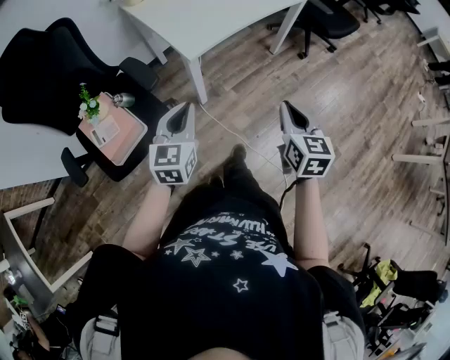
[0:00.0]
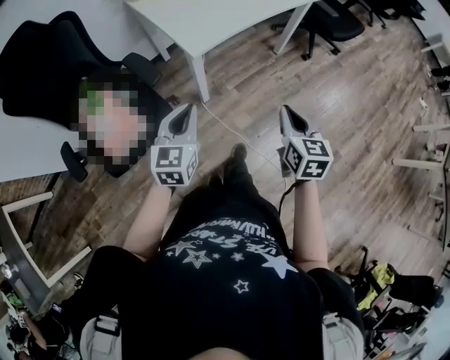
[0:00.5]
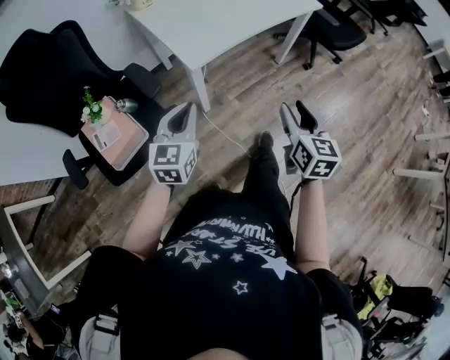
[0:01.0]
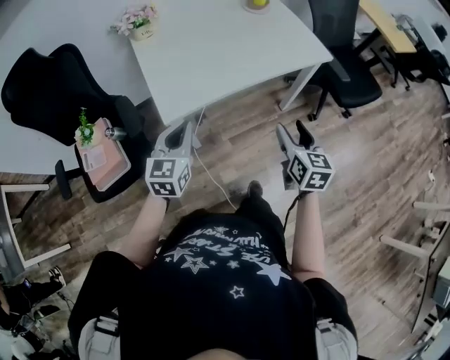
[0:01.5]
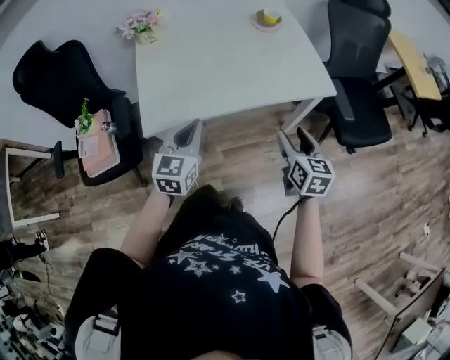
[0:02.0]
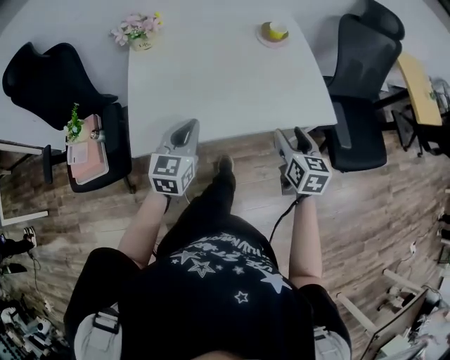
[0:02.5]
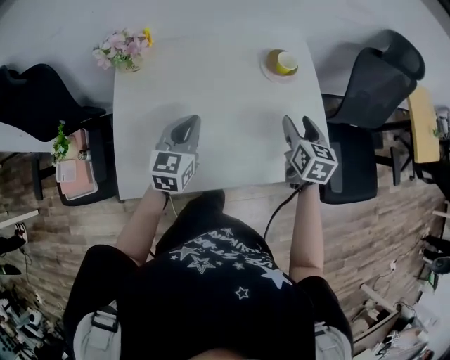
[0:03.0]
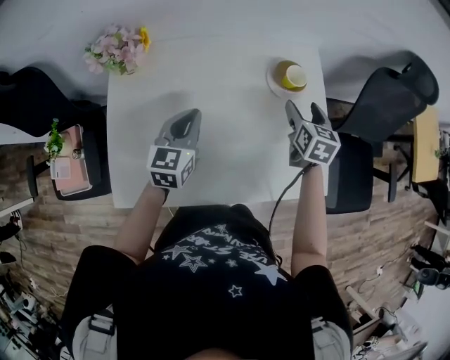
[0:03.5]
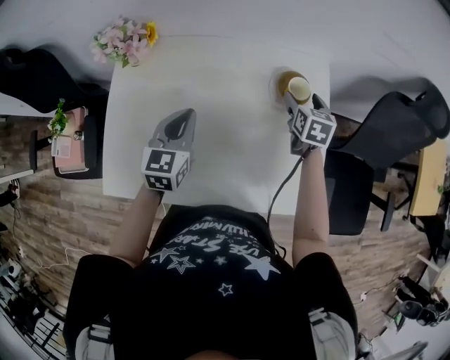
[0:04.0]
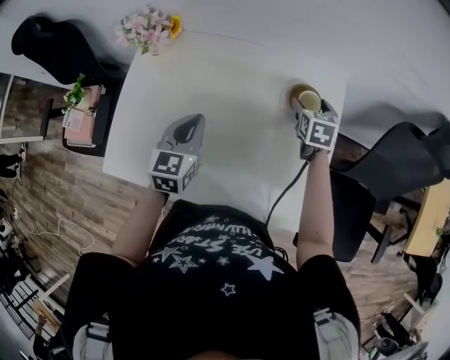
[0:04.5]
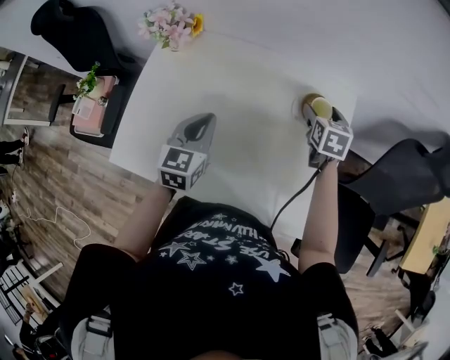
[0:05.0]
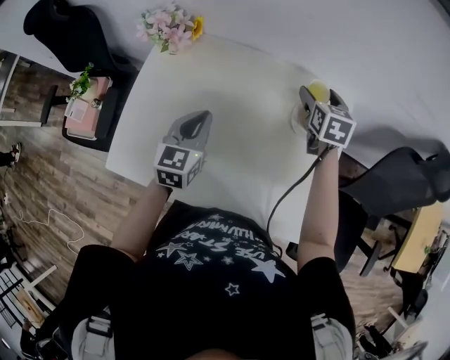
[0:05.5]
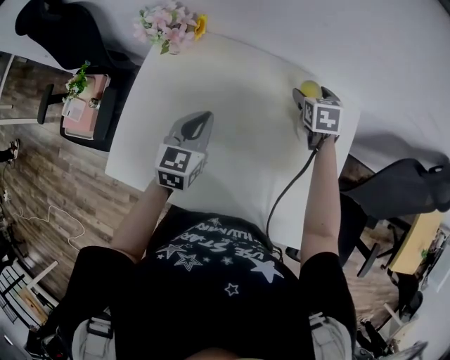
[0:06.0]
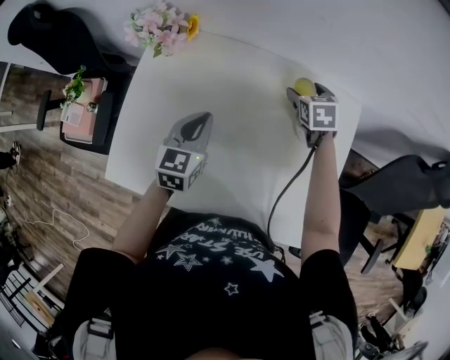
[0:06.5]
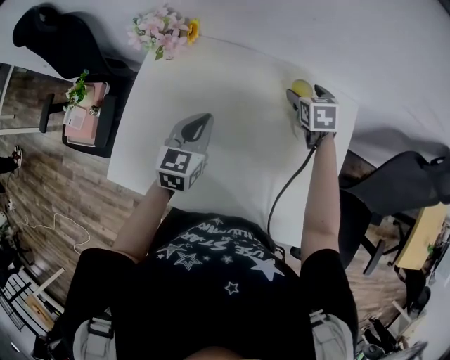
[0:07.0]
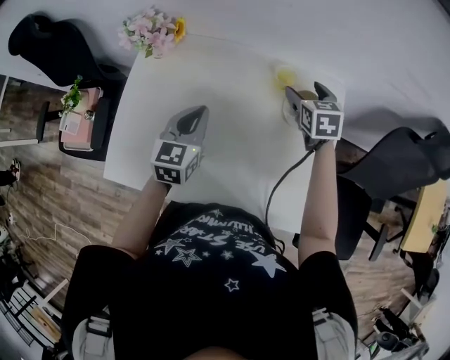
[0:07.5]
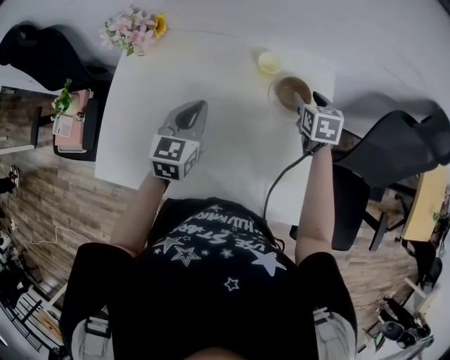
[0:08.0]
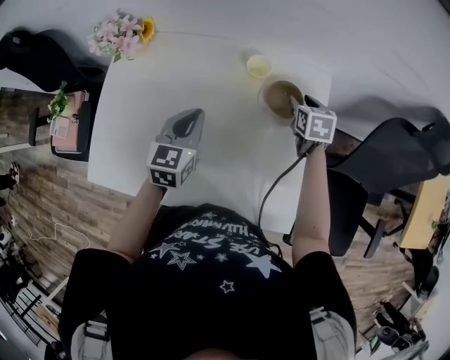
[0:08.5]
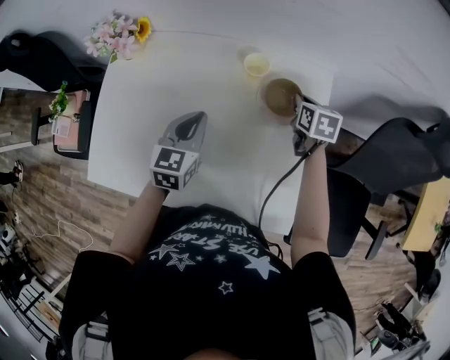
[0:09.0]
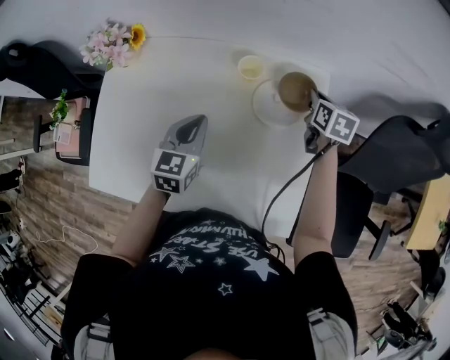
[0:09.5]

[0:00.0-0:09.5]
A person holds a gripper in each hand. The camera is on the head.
0:00.0 to 0:02.0: Both grippers travel together forward and to the right, some 40 cm. The left gripper swivels about 20 degrees, while the right gripper swivels roughly 20 degrees, and opens up.
0:02.0 to 0:04.0: The left gripper shifts approximately 35 cm forward; the right gripper goes some 60 cm forward, and rotates about 20 degrees.
0:04.0 to 0:05.5: The right gripper shifts some 10 cm forward, to the left and upward.
0:05.5 to 0:07.5: The right gripper moves approximately 10 cm downward and comes back.
0:07.5 to 0:09.5: The right gripper shifts some 15 cm to the right, swivels approximately 30 degrees, and closes, while the left gripper is displaced to the right by approximately 10 cm.

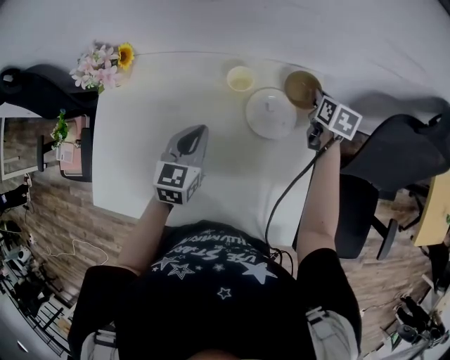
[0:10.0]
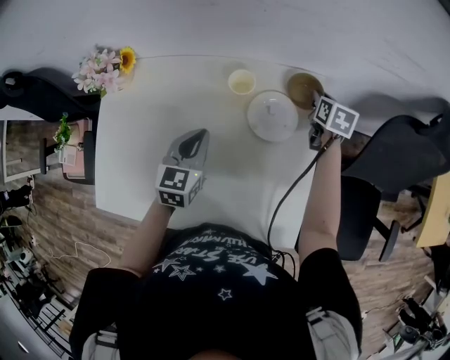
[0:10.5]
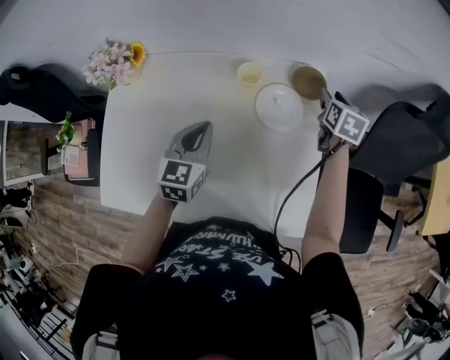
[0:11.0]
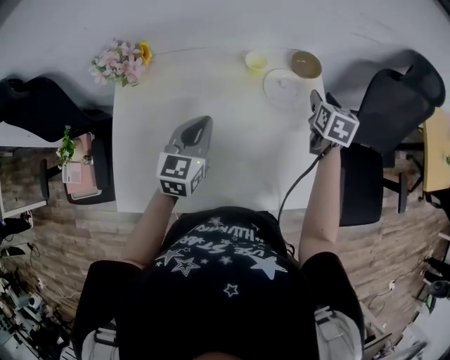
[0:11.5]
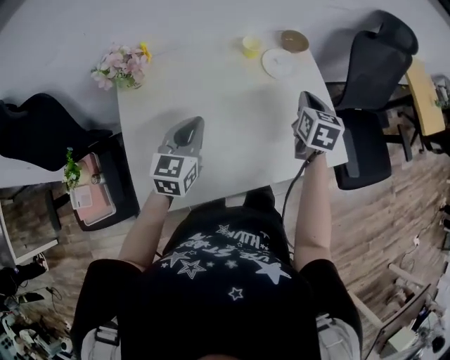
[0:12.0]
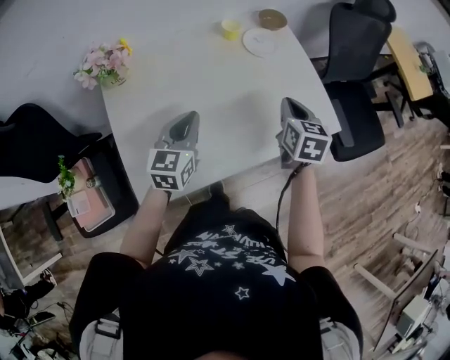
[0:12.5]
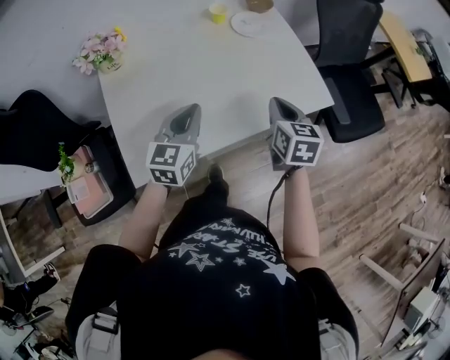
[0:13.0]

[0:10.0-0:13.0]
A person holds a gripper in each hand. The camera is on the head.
0:10.0 to 0:11.5: The right gripper travels backward and upward by roughly 20 cm, and opens its fingers; the left gripper travels to the left, backward and upward by about 10 cm.
0:11.5 to 0:13.0: The left gripper goes about 20 cm backward; the right gripper shifts approximately 35 cm backward, and closes up.

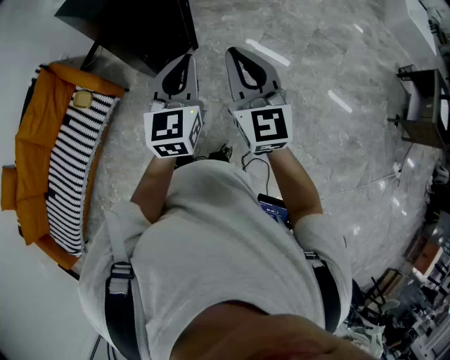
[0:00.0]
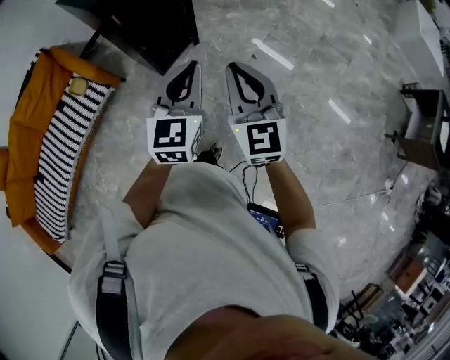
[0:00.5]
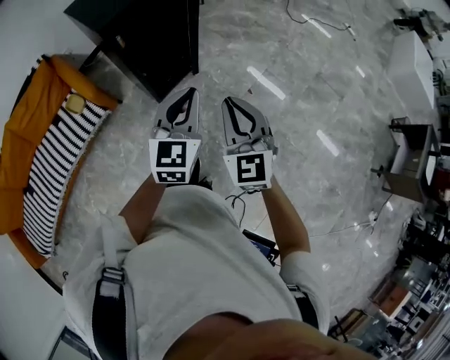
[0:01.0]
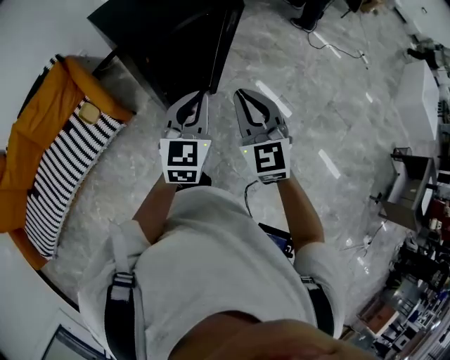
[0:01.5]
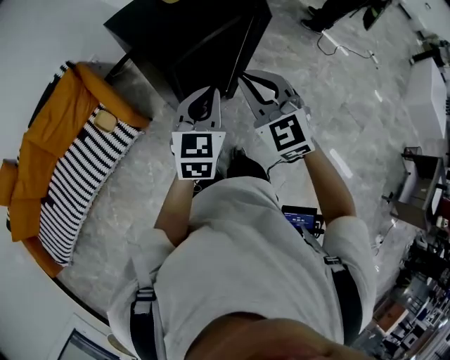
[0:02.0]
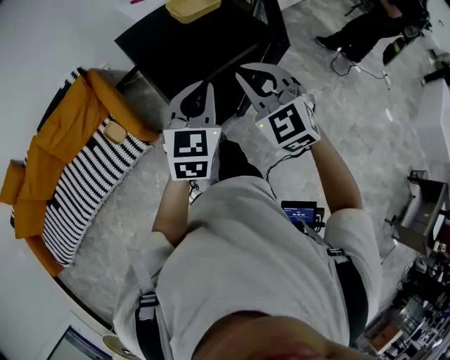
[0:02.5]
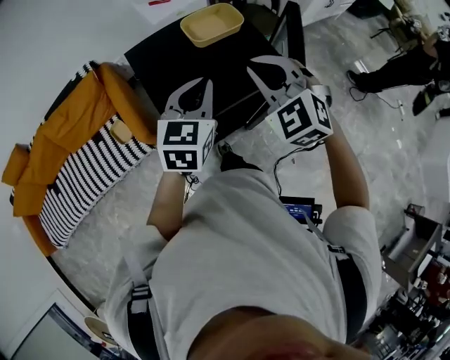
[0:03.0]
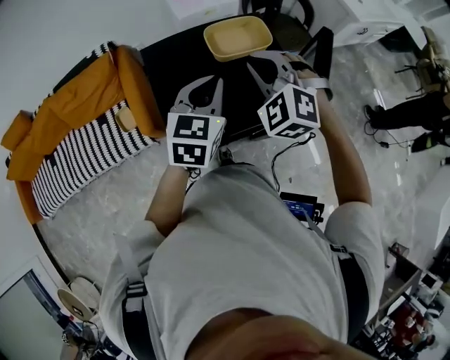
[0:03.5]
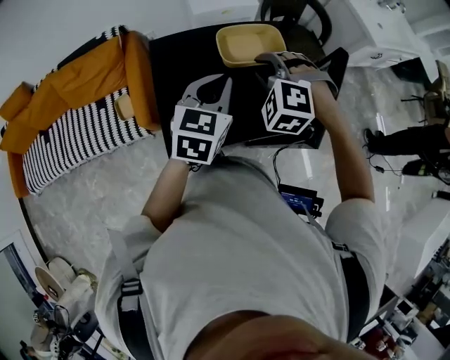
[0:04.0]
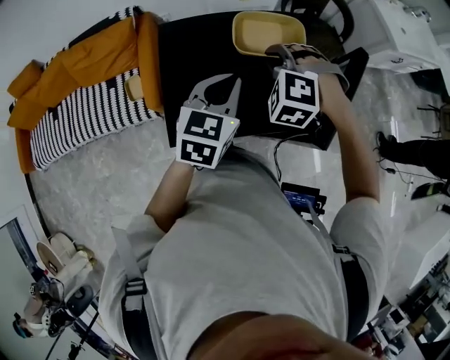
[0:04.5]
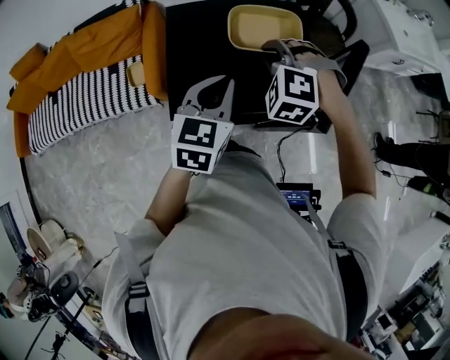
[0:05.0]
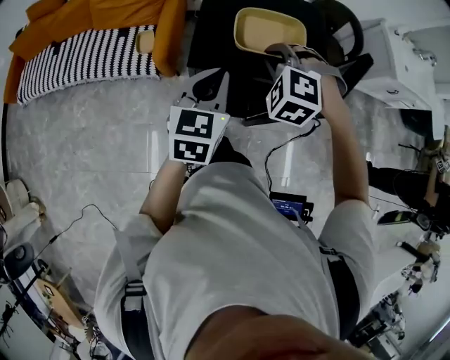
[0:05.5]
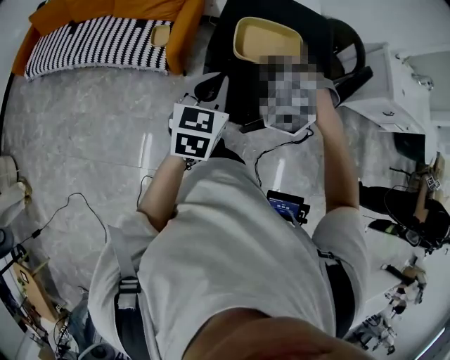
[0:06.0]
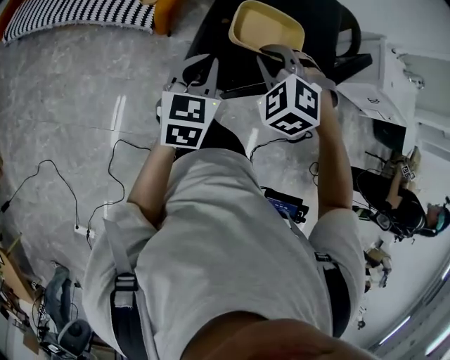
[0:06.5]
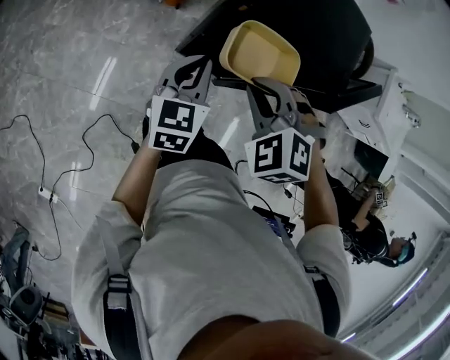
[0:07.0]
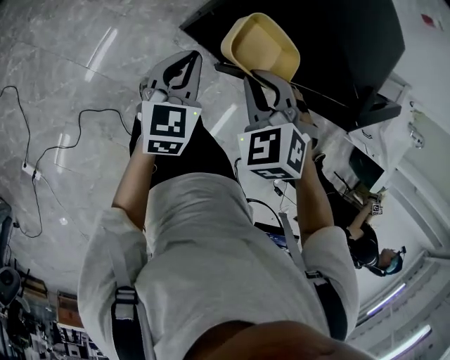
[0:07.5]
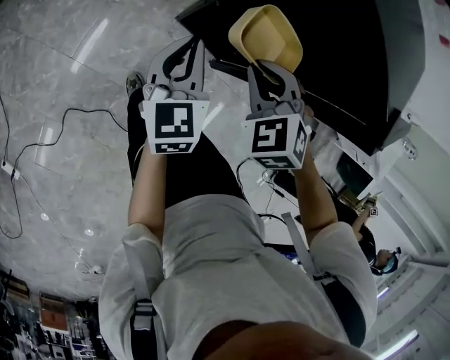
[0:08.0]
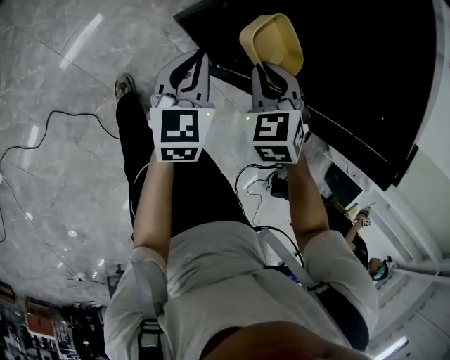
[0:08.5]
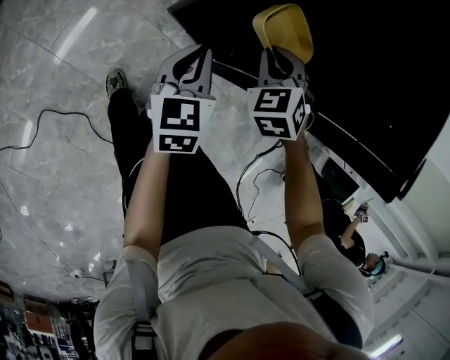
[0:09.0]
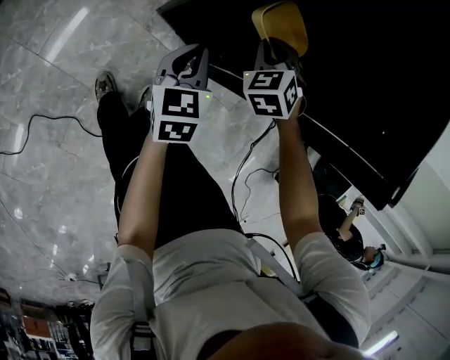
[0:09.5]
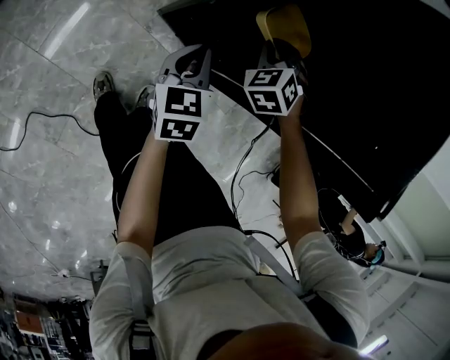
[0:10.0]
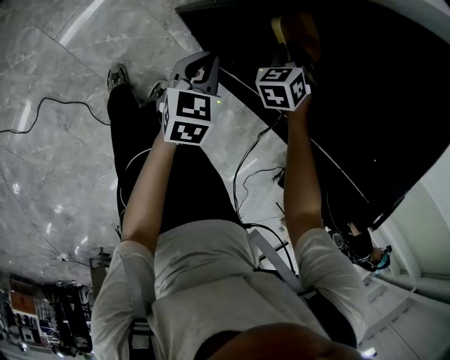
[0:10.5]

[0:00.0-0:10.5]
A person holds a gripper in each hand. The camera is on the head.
0:00.0 to 0:02.0: Both grippers move forward and to the left, about 35 cm. The right gripper swivels about 40 degrees.
0:02.0 to 0:04.0: Both grippers move forward, some 40 cm. The left gripper turns by approximately 20 degrees, while the right gripper twists approximately 50 degrees counterclockwise, seen from behind.
0:04.0 to 0:06.5: The two grippers go some 30 cm backward. The left gripper changes its angle by roughly 30 degrees.
0:06.5 to 0:08.5: The two grippers go roughly 35 cm downward. The left gripper turns by roughly 40 degrees.
0:08.5 to 0:10.5: The left gripper shifts some 15 cm downward, forward and to the right, while the right gripper shifts approximately 20 cm forward and downward.

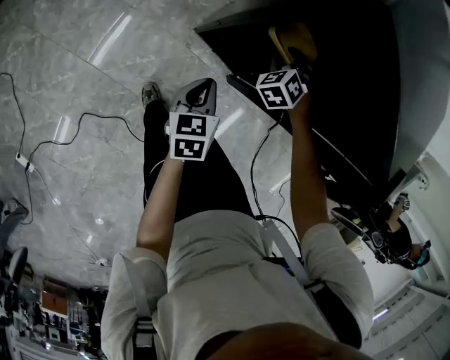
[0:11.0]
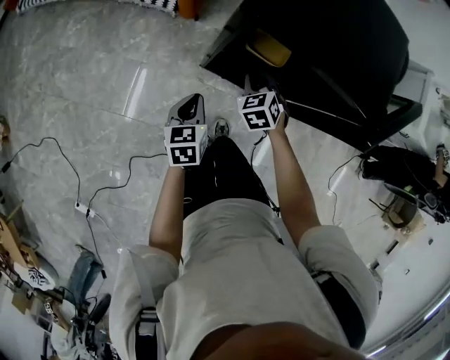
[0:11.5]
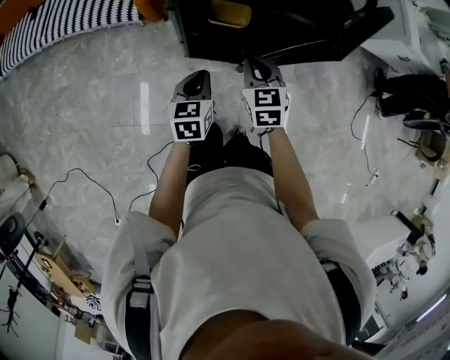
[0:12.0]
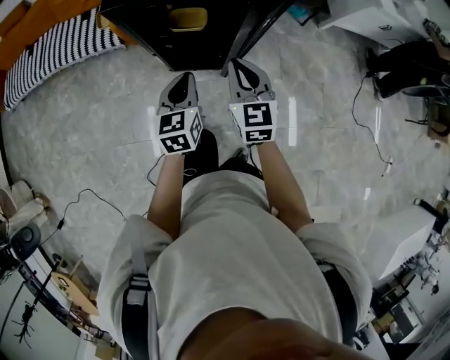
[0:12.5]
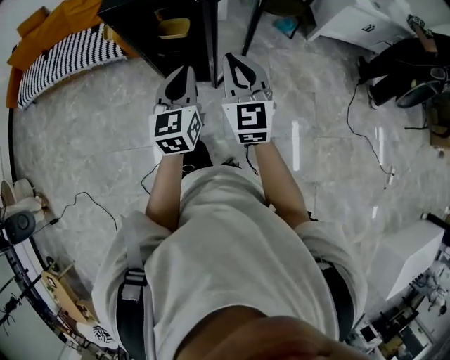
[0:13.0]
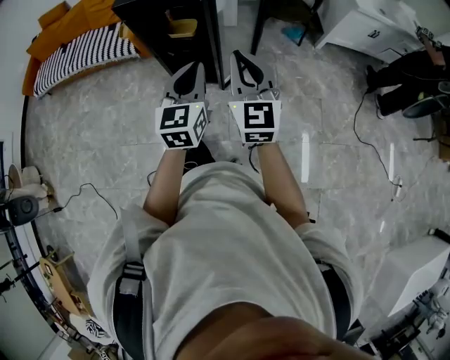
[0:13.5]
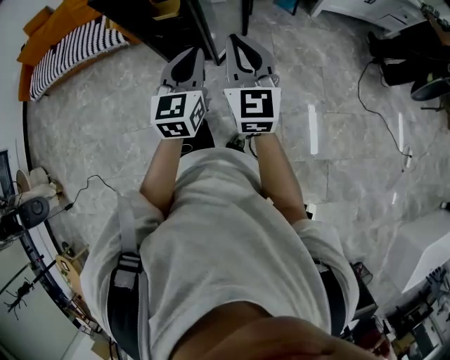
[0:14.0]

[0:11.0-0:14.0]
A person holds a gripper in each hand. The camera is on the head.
0:11.0 to 0:12.5: The right gripper goes approximately 40 cm upward and backward, twists roughly 60 degrees clockwise, seen from behind, and closes its fingers; the left gripper shifts roughly 30 cm upward and to the right, and swivels about 30 degrees.
0:12.5 to 0:14.0: The two grippers go some 35 cm backward, to the right and upward.
